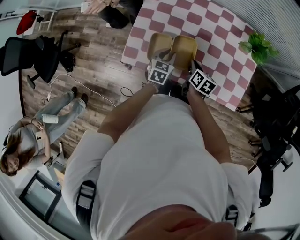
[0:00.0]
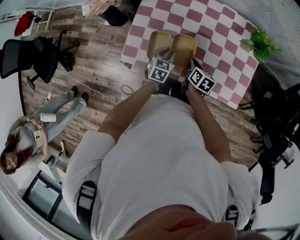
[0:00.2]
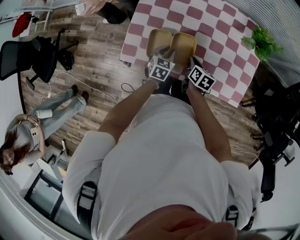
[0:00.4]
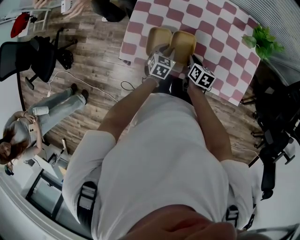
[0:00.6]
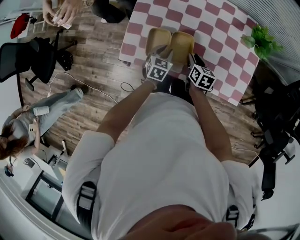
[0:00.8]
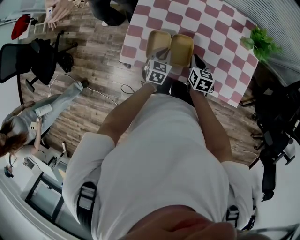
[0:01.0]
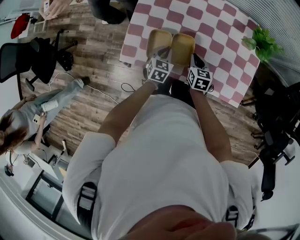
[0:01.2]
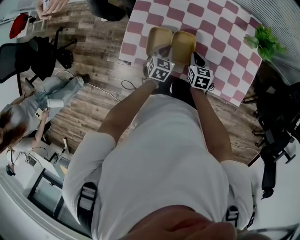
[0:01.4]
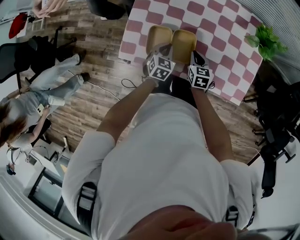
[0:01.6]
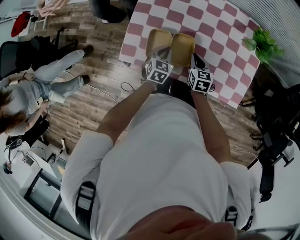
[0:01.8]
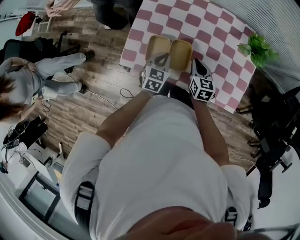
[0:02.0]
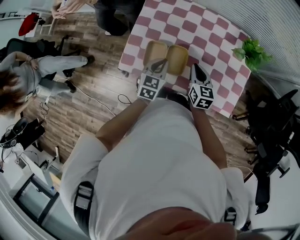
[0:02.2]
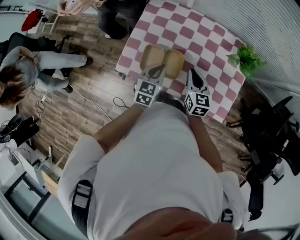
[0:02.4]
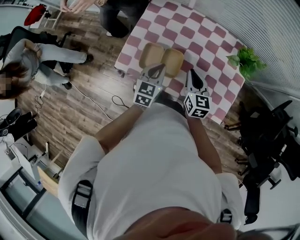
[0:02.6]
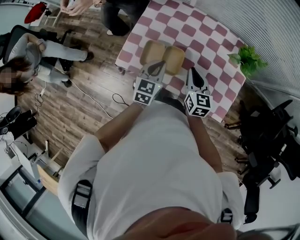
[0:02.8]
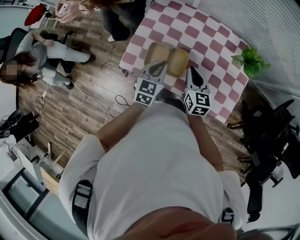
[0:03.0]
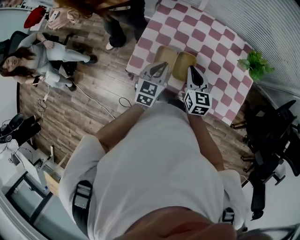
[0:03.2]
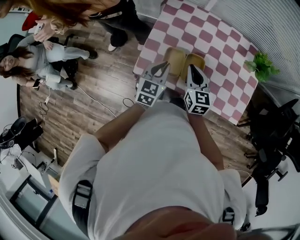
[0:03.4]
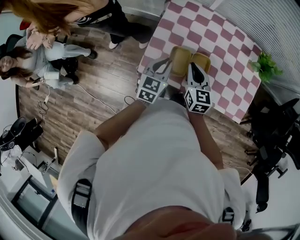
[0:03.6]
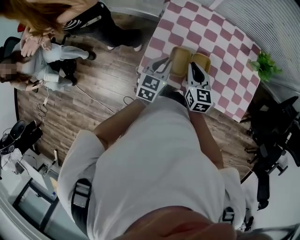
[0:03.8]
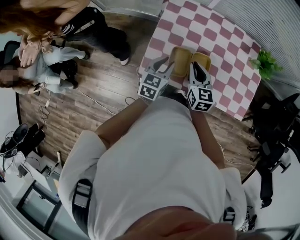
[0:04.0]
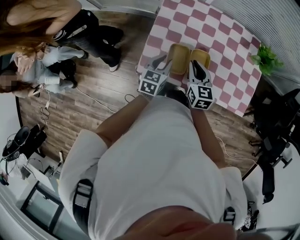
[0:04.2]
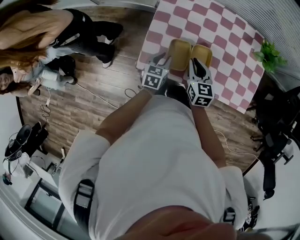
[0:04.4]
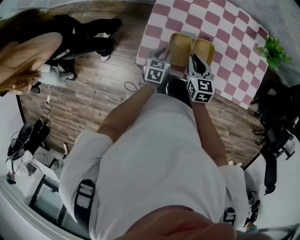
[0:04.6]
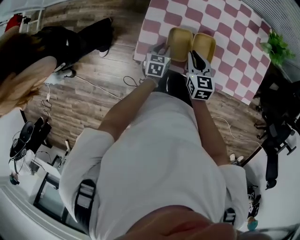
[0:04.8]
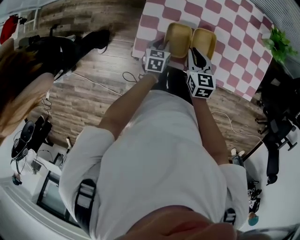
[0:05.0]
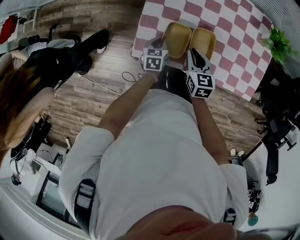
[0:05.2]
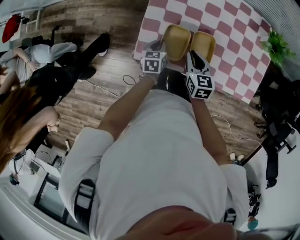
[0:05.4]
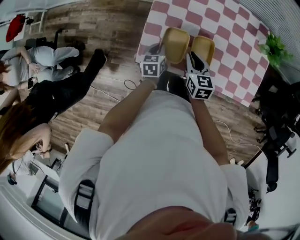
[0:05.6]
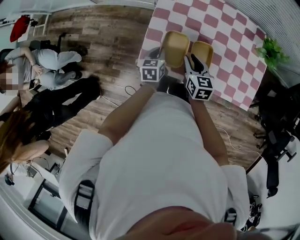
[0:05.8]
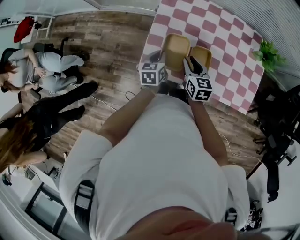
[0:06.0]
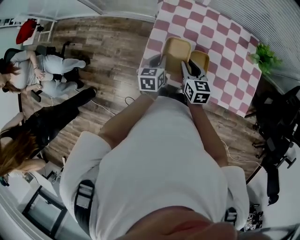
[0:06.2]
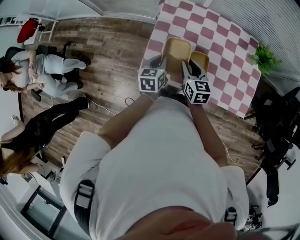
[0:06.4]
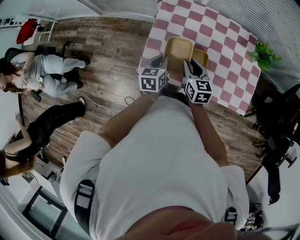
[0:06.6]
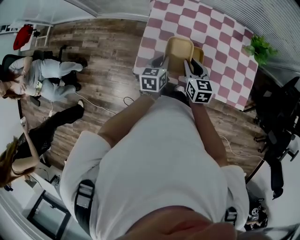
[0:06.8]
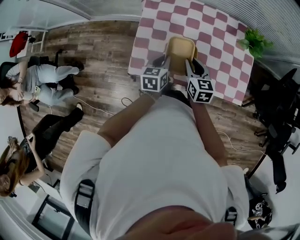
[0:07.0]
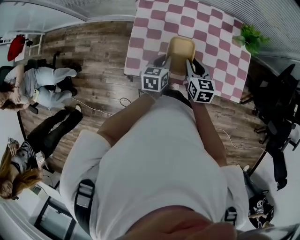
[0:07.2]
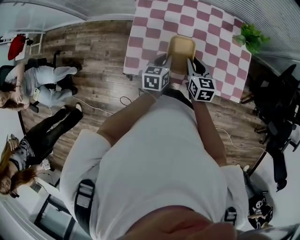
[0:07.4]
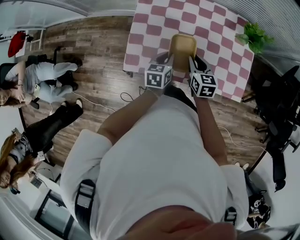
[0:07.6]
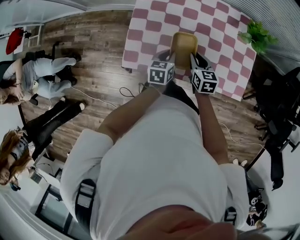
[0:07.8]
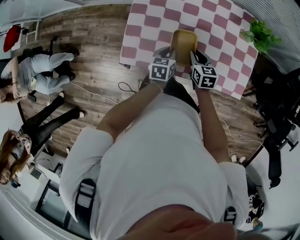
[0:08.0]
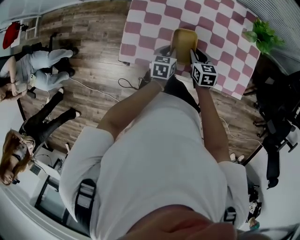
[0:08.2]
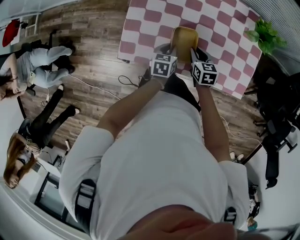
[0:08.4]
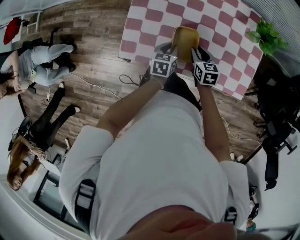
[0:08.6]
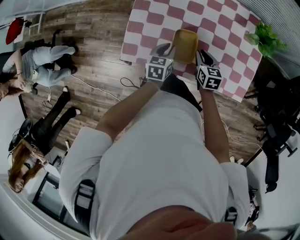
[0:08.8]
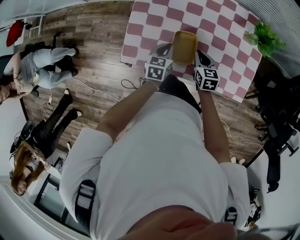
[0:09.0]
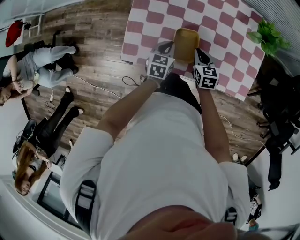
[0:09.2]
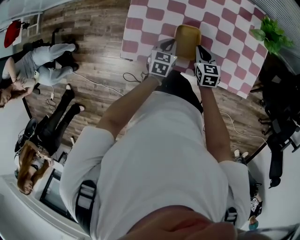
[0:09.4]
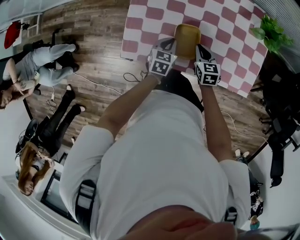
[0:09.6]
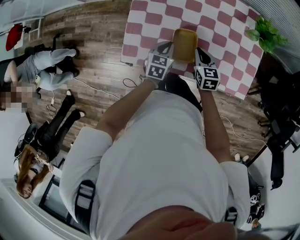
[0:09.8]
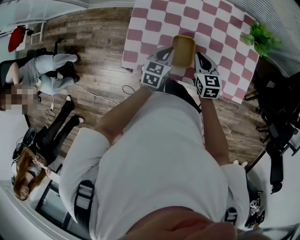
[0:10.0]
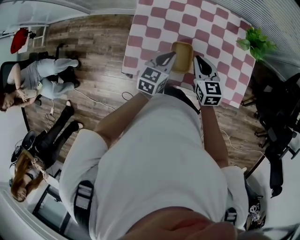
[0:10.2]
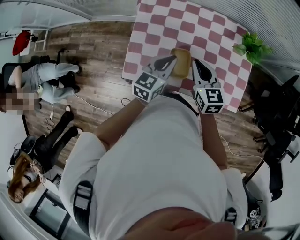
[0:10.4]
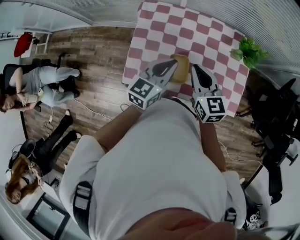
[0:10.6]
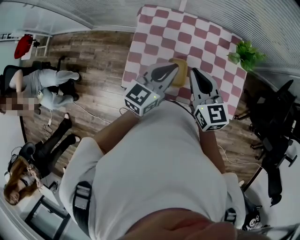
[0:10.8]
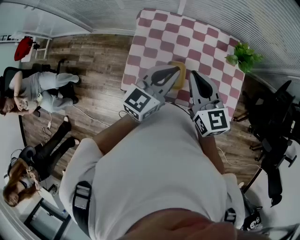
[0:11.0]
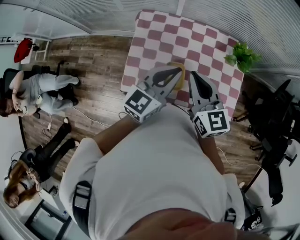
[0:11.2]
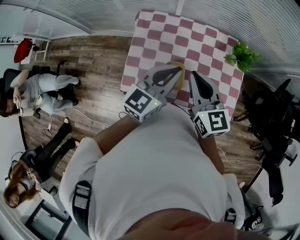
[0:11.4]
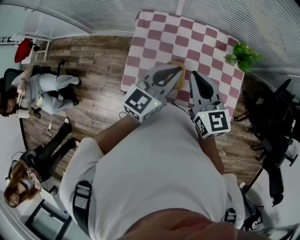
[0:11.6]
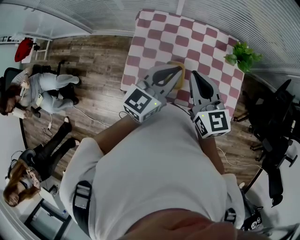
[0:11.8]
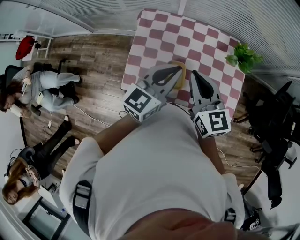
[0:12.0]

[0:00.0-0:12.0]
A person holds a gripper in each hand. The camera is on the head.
0:00.0 to 0:01.6: The right gripper changes its angle by some 30 degrees, and opens, then closes again.
0:01.6 to 0:03.0: Both grippers move upward, roughly 20 cm. The right gripper changes its angle by about 20 degrees, while the left gripper swivels approximately 20 degrees.
0:03.0 to 0:04.4: The right gripper is displaced to the left and downward by about 15 cm. Meanwhile the left gripper goes roughly 20 cm downward and to the left.
0:04.4 to 0:06.0: The left gripper reaches about 10 cm downward, then returns.
0:06.0 to 0:07.6: Both grippers travel together to the right, some 15 cm.
0:07.6 to 0:09.0: The grippers both shift downward by approximately 5 cm.
0:09.0 to 0:10.4: The two grippers go some 20 cm upward. The left gripper rotates some 20 degrees.
0:10.4 to 0:12.0: Both grippers travel together upward, about 15 cm.

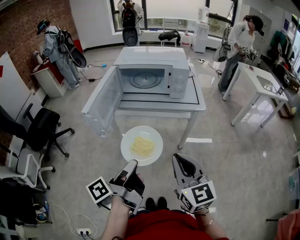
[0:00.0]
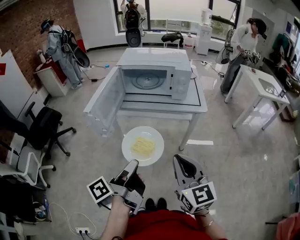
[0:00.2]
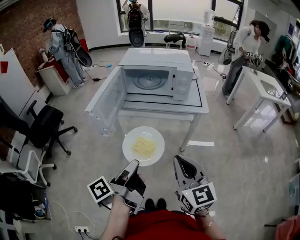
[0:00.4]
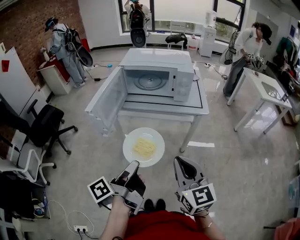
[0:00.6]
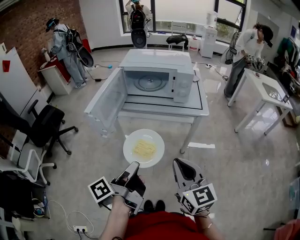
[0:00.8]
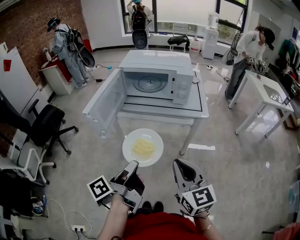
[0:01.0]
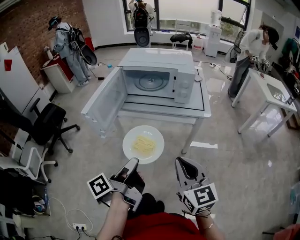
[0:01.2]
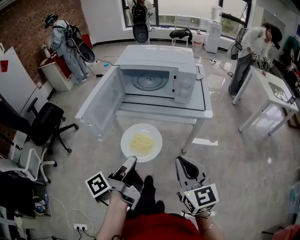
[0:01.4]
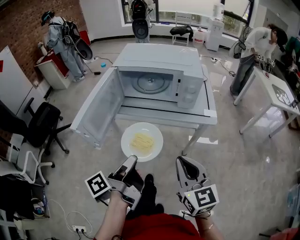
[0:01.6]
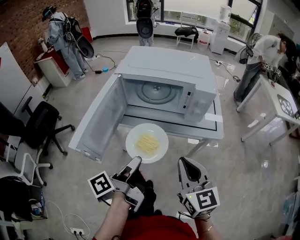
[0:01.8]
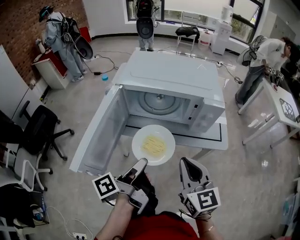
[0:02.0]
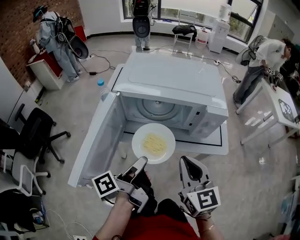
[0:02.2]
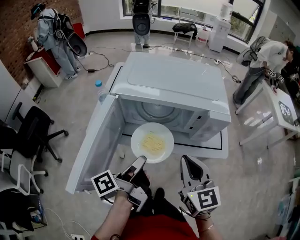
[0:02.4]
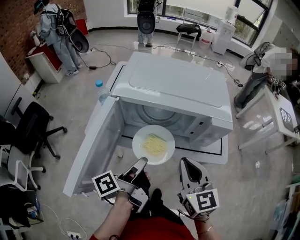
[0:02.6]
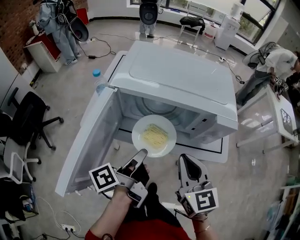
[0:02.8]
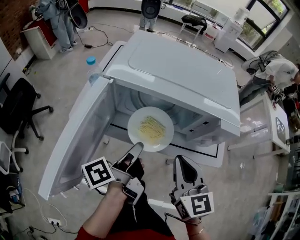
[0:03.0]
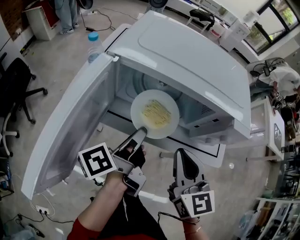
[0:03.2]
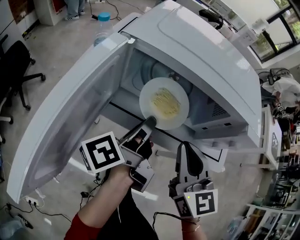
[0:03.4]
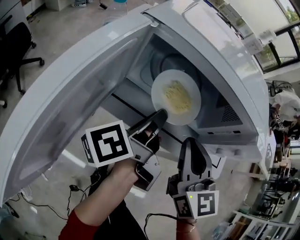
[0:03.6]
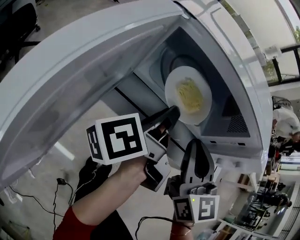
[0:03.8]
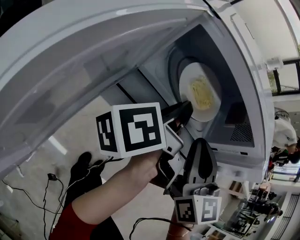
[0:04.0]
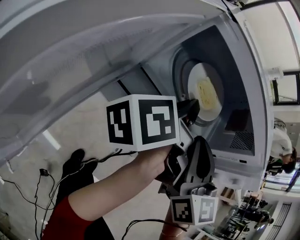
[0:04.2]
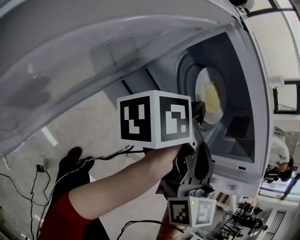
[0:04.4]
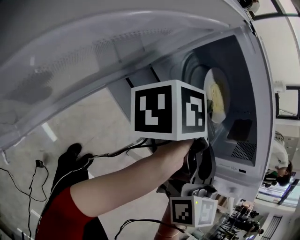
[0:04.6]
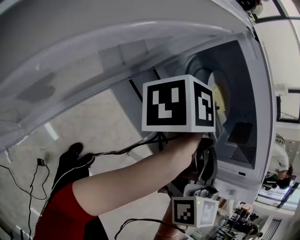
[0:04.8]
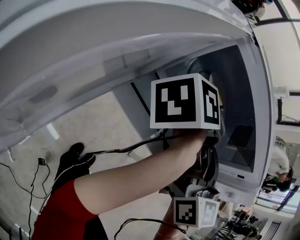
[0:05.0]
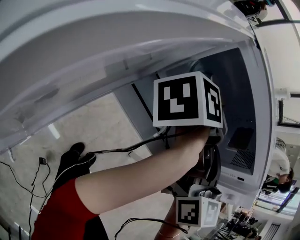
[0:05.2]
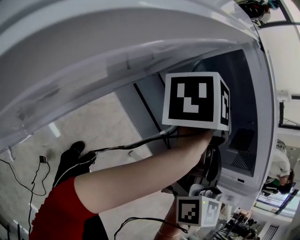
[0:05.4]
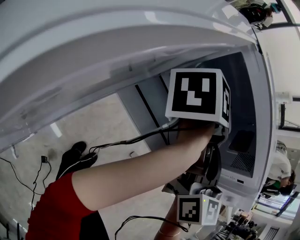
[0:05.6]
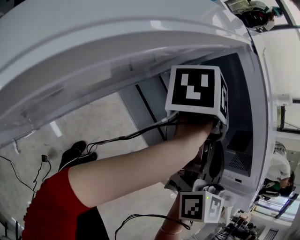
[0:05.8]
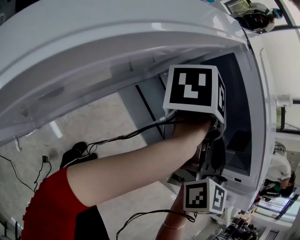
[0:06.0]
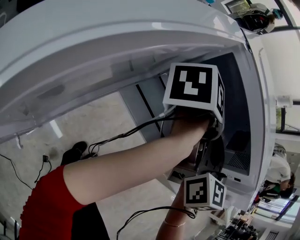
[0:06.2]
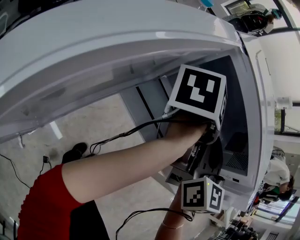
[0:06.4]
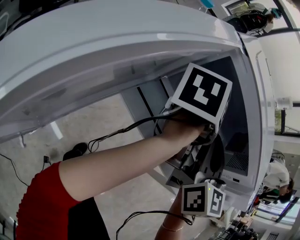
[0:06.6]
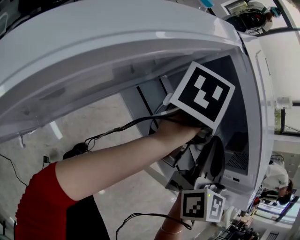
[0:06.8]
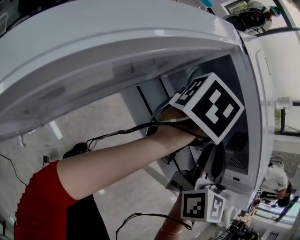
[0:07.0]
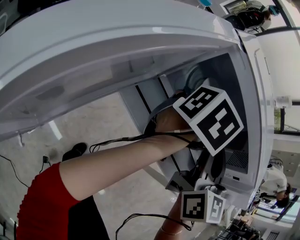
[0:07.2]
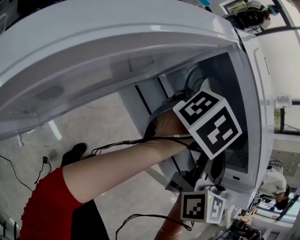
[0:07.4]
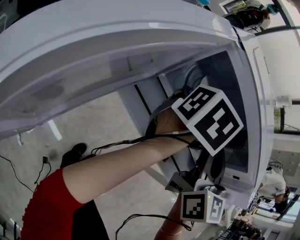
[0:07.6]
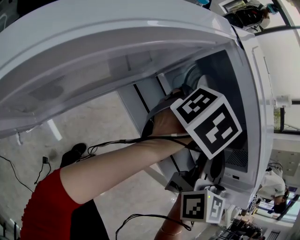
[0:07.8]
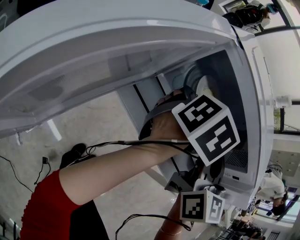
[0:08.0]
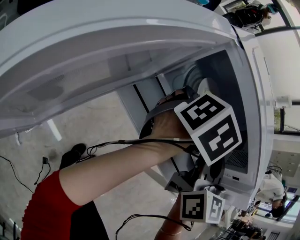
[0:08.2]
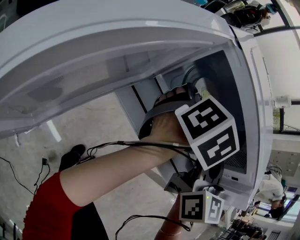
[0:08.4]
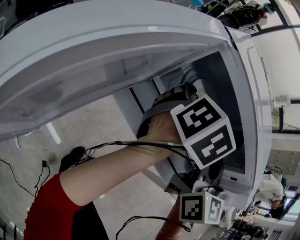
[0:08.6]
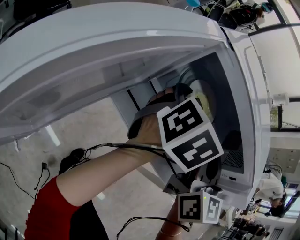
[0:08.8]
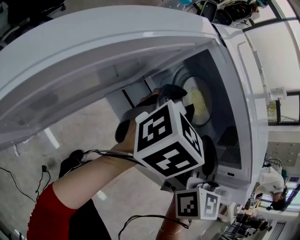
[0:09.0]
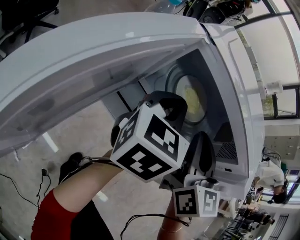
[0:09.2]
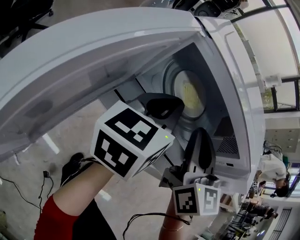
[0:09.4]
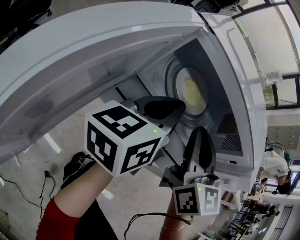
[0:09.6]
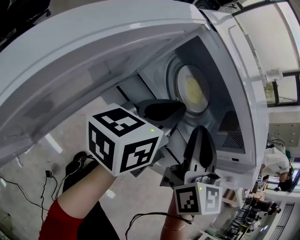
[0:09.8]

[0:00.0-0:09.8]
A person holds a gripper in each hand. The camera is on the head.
0:00.0 to 0:01.4: Both grippers move forward, approximately 5 cm.
0:01.4 to 0:02.8: Both grippers travel together forward, approximately 30 cm.
0:02.8 to 0:04.2: The right gripper is displaced forward and downward by roughly 10 cm. The left gripper shifts about 15 cm forward.
0:04.2 to 0:05.6: The left gripper shifts about 5 cm forward.
0:05.6 to 0:07.0: The left gripper twists approximately 40 degrees clockwise, seen from behind, and opens.
0:07.0 to 0:08.4: The left gripper rotates some 30 degrees, and opens.
0:08.4 to 0:09.8: The left gripper moves backward, approximately 5 cm, angles its fingers upward, by about 40 degrees, and closes.

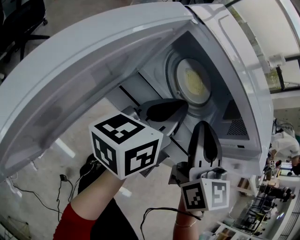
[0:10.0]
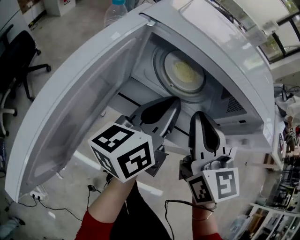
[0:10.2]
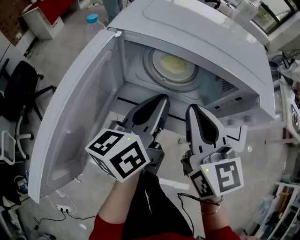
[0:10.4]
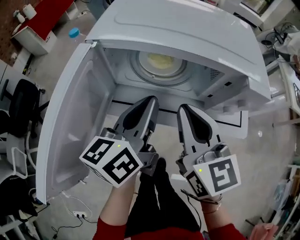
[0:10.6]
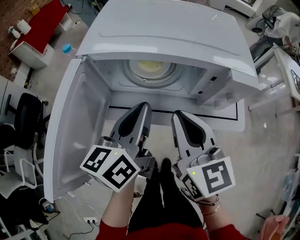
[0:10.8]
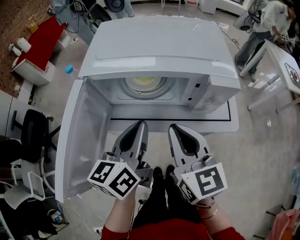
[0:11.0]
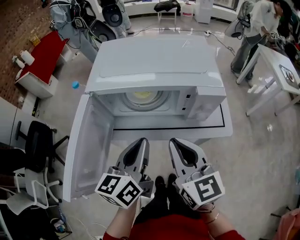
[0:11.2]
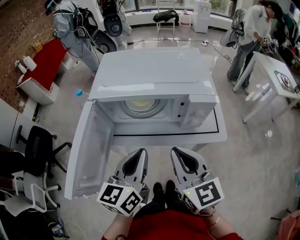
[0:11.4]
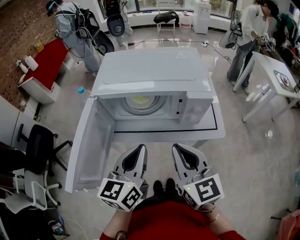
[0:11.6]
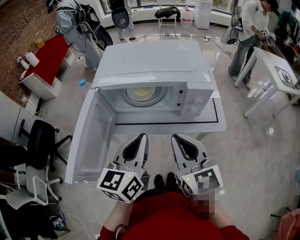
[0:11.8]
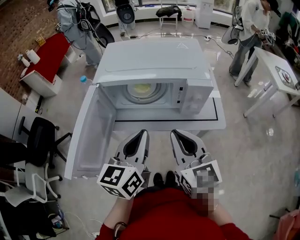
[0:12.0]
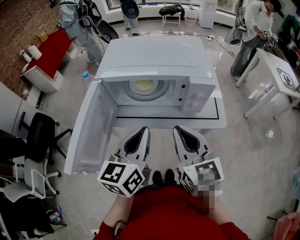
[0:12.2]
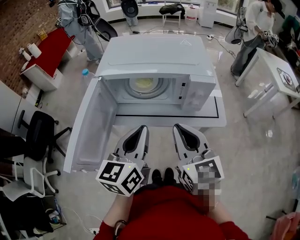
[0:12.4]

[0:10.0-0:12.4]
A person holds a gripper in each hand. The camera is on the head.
0:10.0 to 0:11.2: The left gripper goes roughly 15 cm backward and upward, and rotates about 20 degrees. The right gripper shifts about 15 cm backward and to the right.
0:11.2 to 0:12.4: The left gripper moves about 5 cm.
